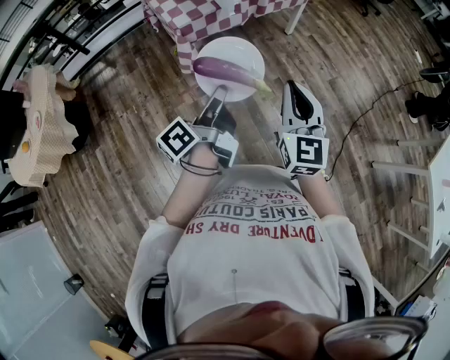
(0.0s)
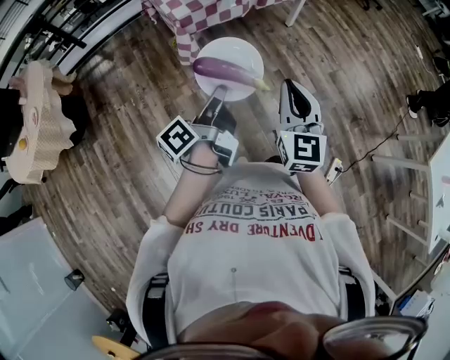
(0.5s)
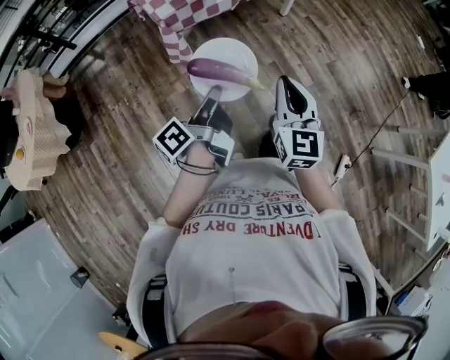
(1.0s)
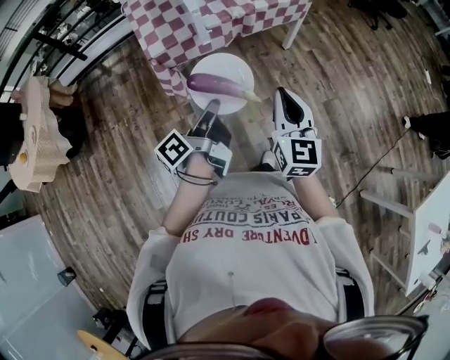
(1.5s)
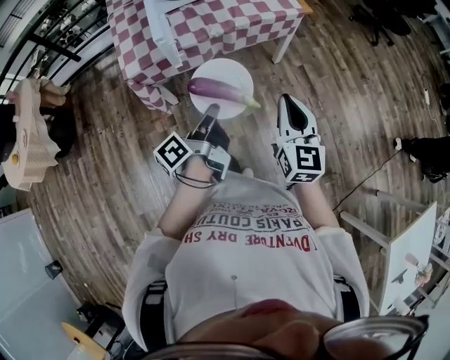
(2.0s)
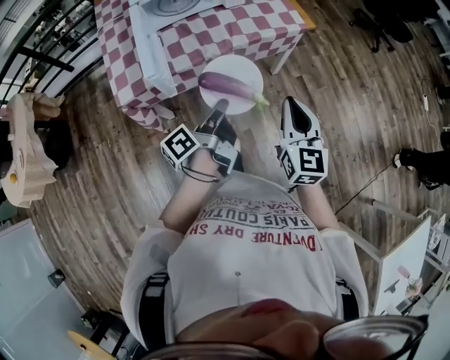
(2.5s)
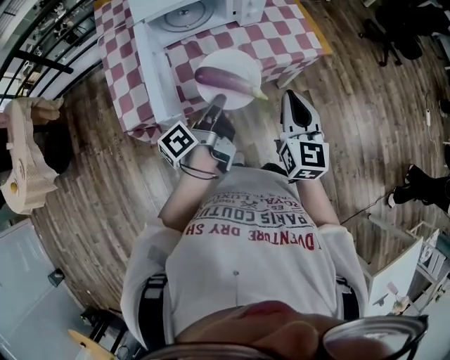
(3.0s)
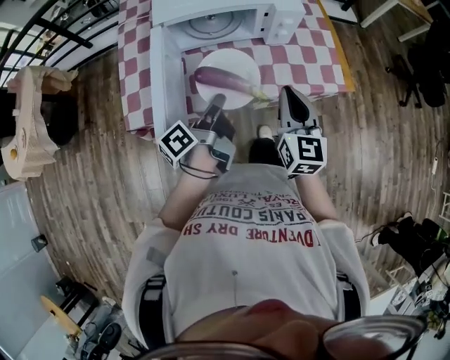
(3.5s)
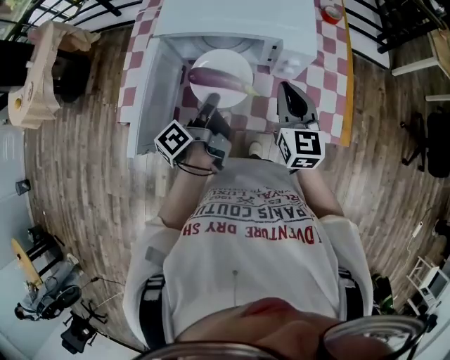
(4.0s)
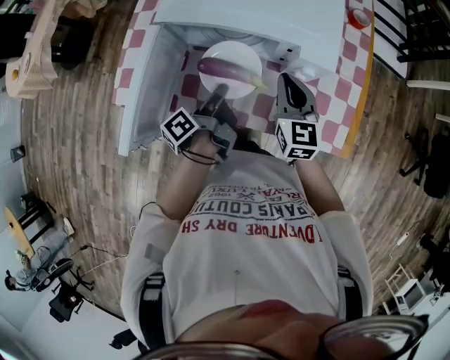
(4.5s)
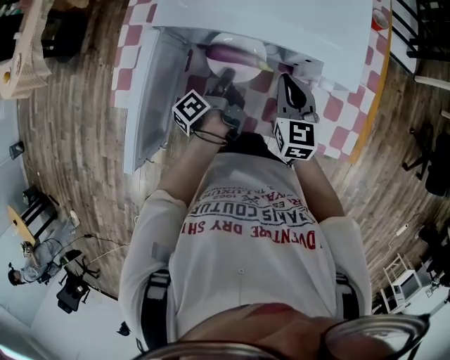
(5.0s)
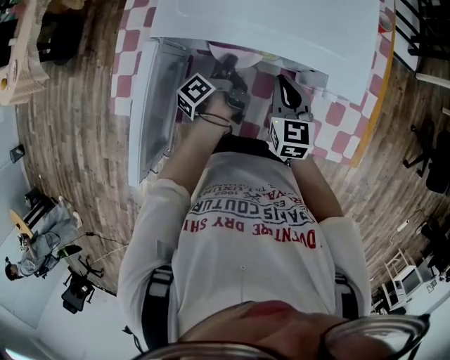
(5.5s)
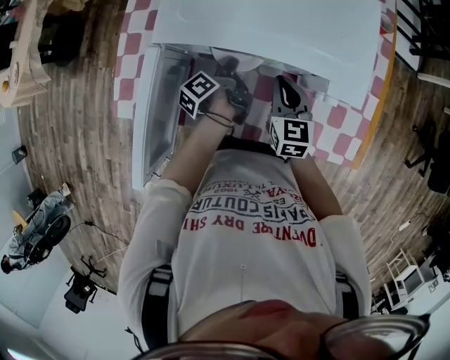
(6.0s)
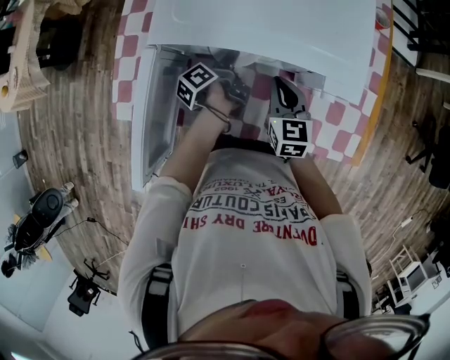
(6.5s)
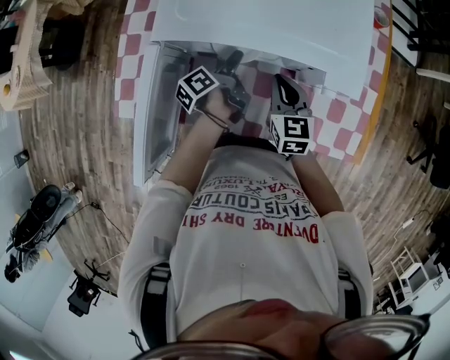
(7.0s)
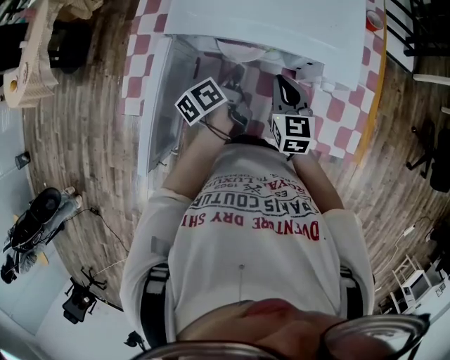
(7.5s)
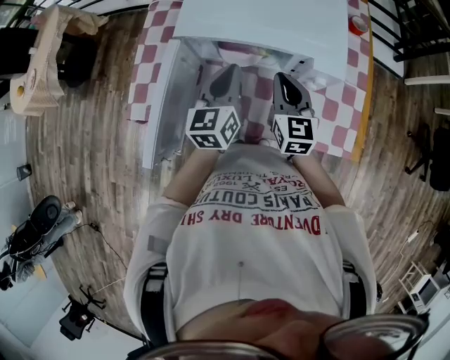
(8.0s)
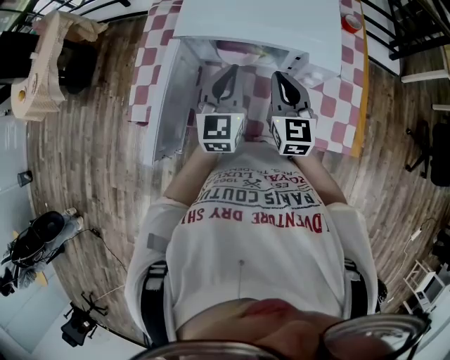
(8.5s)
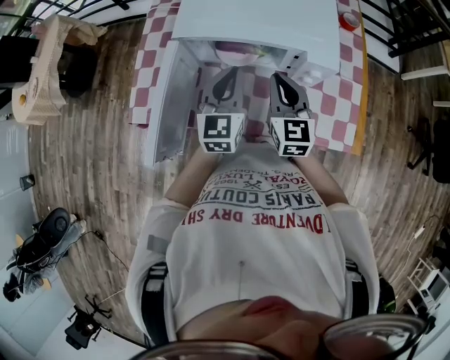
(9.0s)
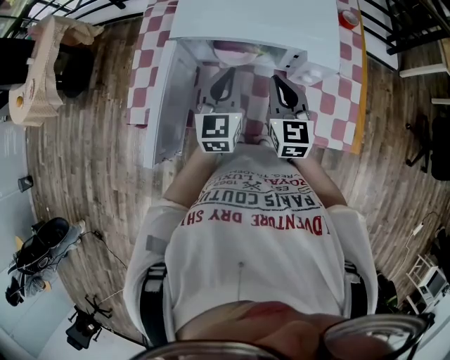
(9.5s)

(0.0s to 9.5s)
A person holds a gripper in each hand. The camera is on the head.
0.0s - 2.0s: The right gripper shifts by about 40 cm.
2.0s - 4.0s: The right gripper changes place by some 60 cm, and swivels about 30 degrees.
4.0s - 5.5s: The right gripper is displaced downward by roughly 15 cm.
7.5s - 9.5s: The right gripper is displaced upward by about 10 cm.

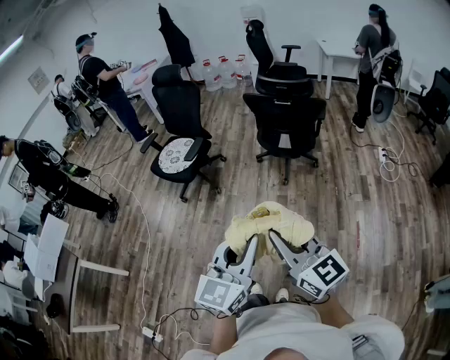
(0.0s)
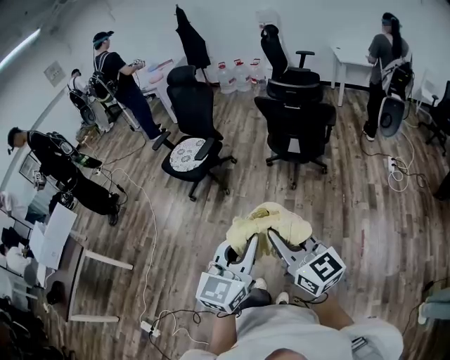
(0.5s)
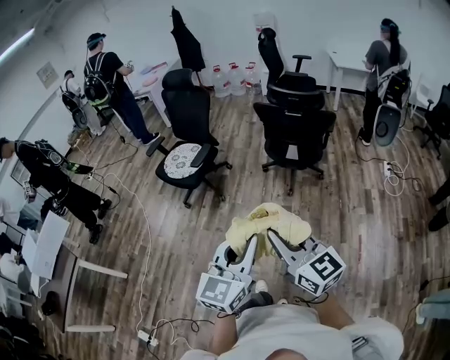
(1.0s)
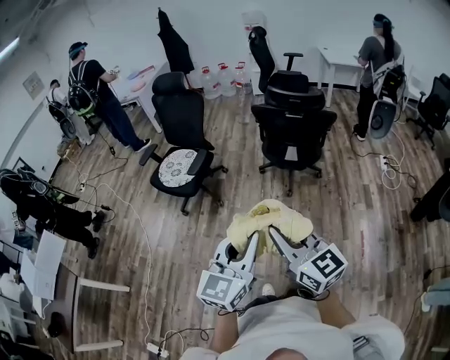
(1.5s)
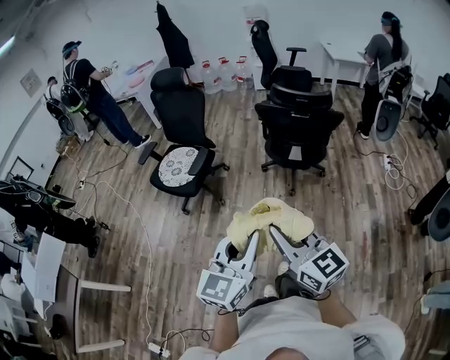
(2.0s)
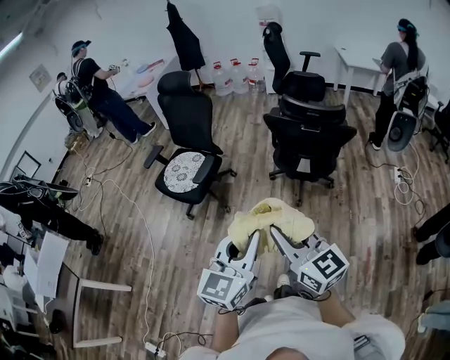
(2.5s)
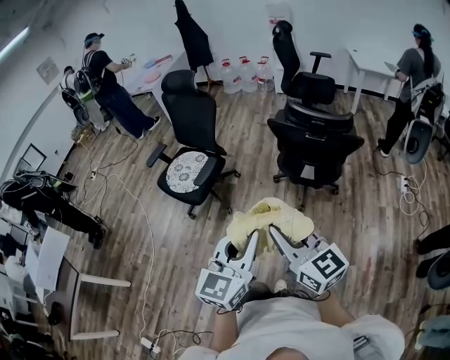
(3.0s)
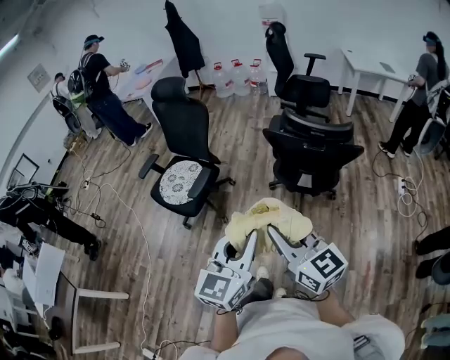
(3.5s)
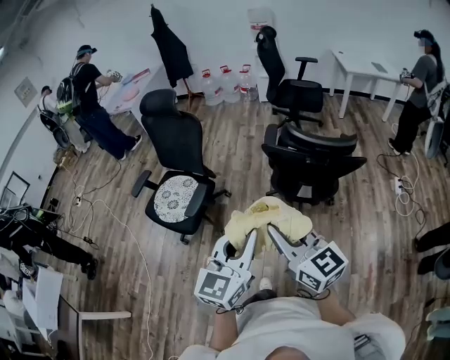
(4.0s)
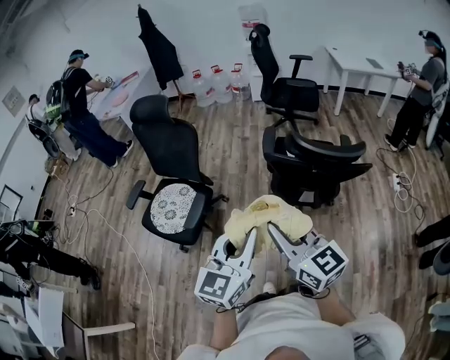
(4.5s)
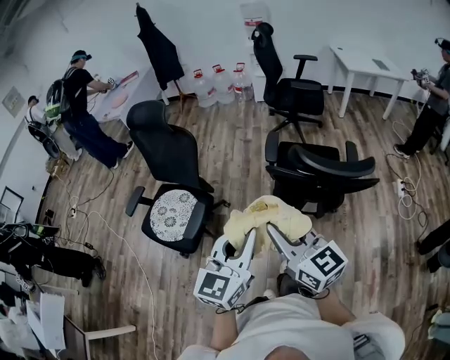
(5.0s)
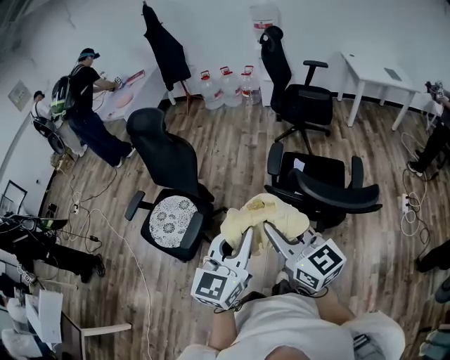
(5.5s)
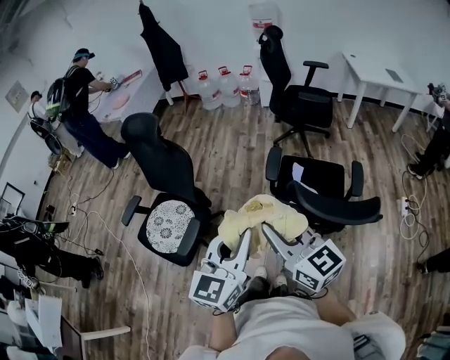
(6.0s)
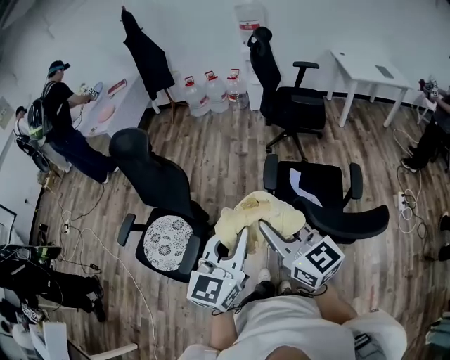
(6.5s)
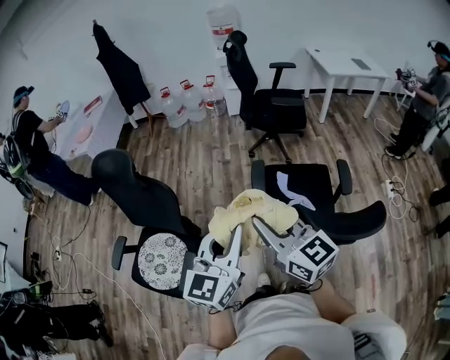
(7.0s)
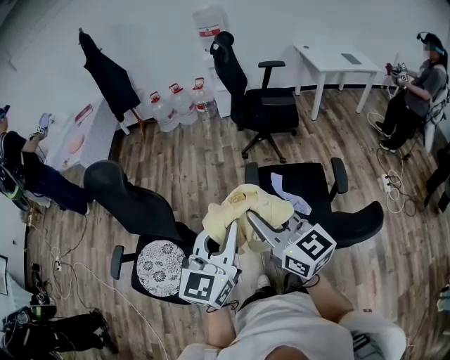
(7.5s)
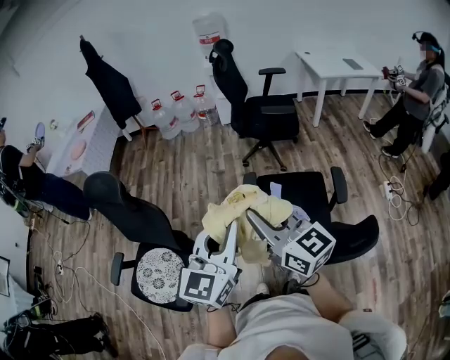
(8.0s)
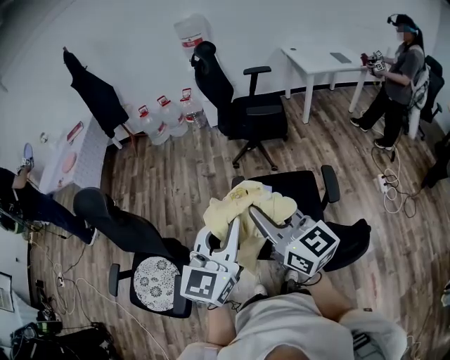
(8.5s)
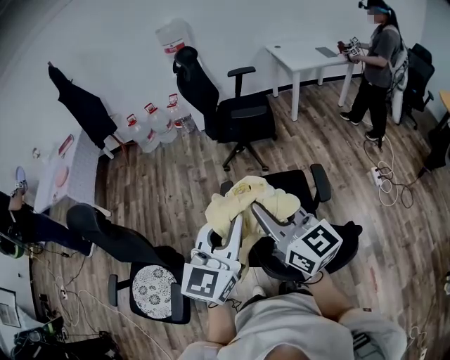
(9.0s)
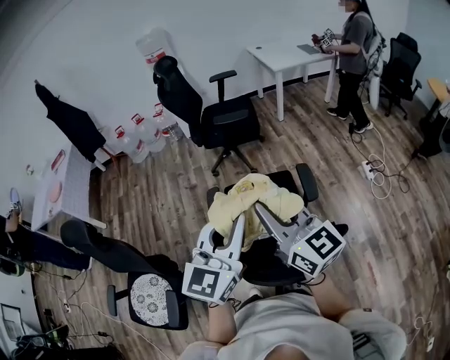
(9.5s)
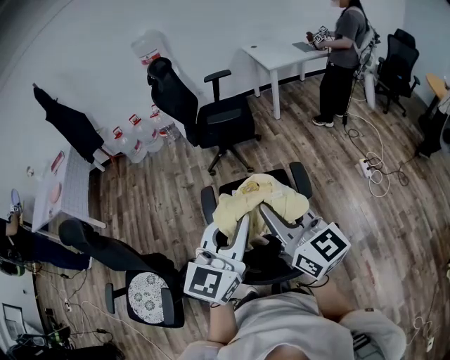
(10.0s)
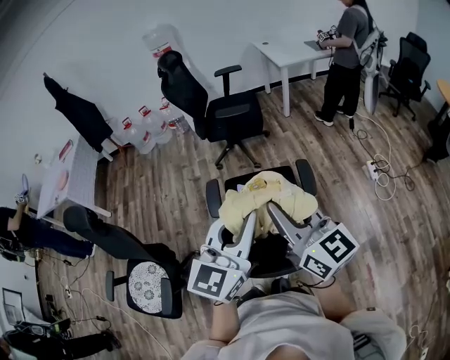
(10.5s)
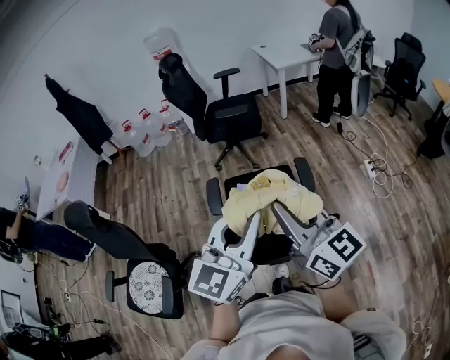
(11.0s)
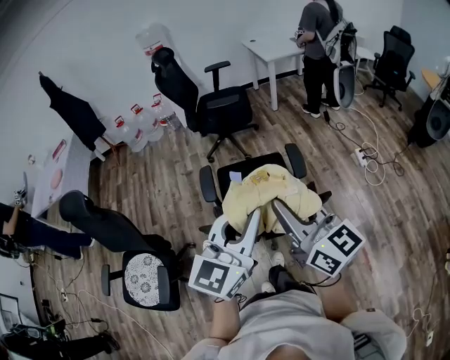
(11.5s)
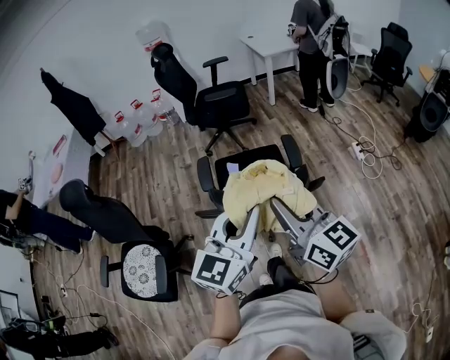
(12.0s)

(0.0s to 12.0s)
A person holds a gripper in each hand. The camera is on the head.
0.0s - 2.0s: The two grippers go roughly 15 cm forward.
2.0s - 4.0s: Both grippers travel together forward, some 30 cm.
4.0s - 6.0s: The grippers both shift forward by roughly 25 cm.
6.0s - 8.0s: The grippers both shift forward by about 20 cm.
8.0s - 10.0s: Both grippers move to the right, roughly 25 cm.
10.0s - 12.0s: Both grippers move backward, approximately 15 cm.

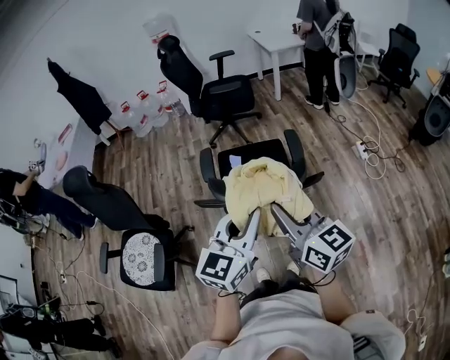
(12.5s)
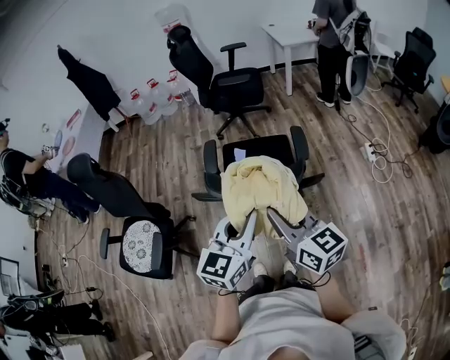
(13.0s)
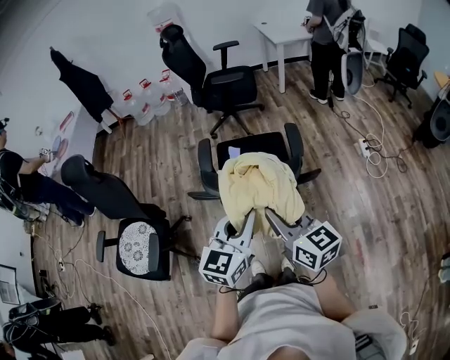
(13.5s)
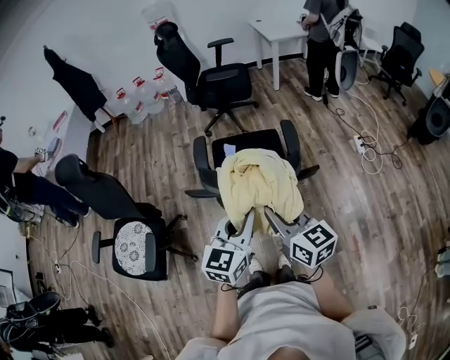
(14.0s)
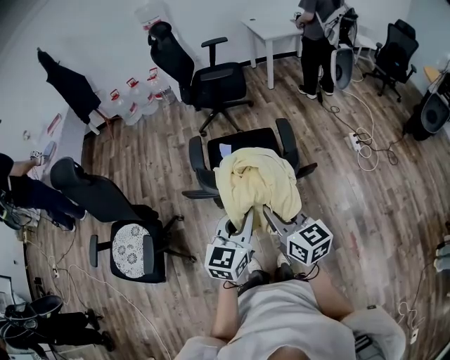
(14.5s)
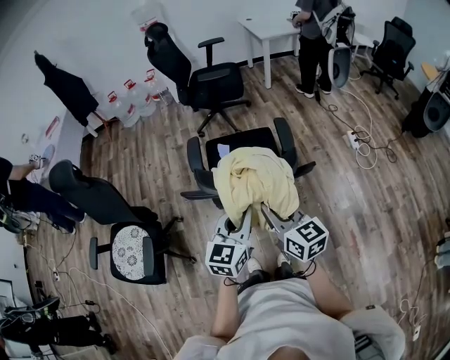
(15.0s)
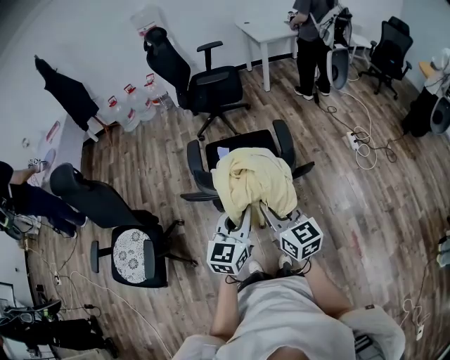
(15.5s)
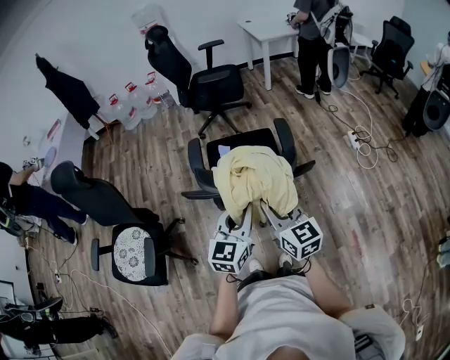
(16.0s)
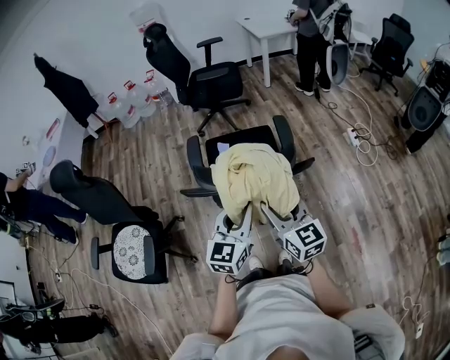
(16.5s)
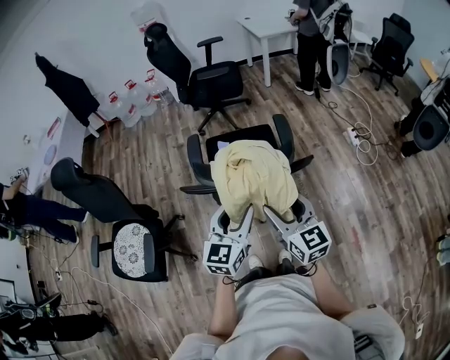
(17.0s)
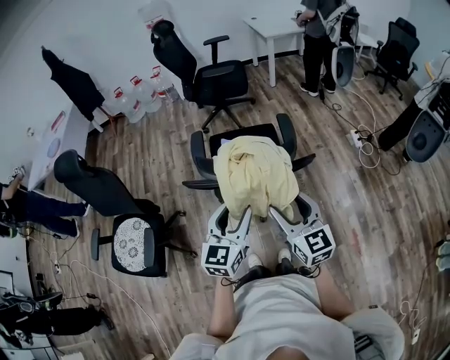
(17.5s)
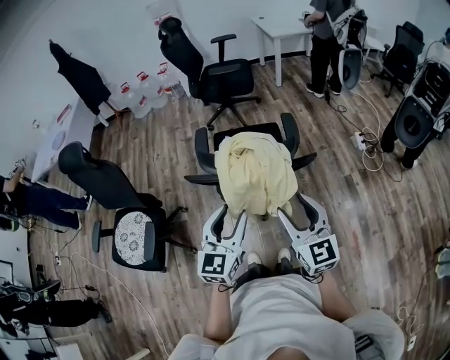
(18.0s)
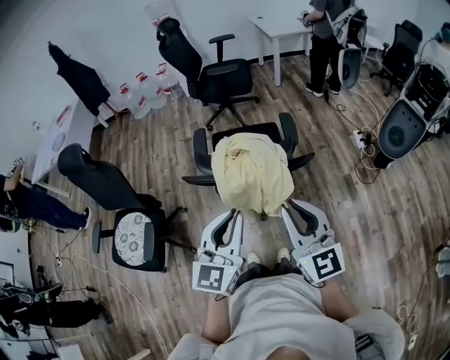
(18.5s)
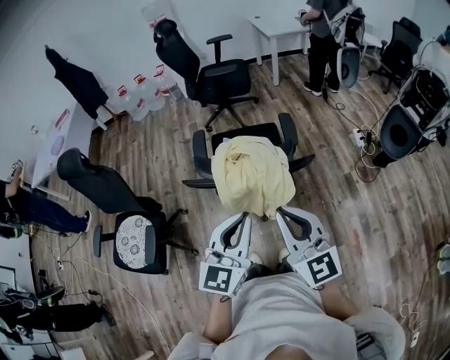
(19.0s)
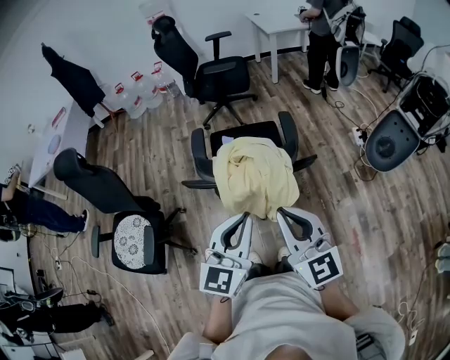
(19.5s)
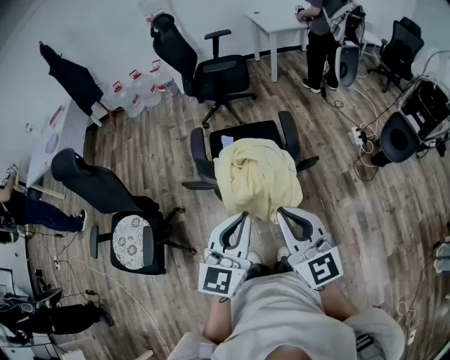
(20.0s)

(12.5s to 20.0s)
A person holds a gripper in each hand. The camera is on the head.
12.5s - 14.5s: The two grippers go approximately 10 cm downward.
14.5s - 16.5s: The right gripper opens.
16.5s - 18.0s: Both grippers move backward, approximately 5 cm. The left gripper opens.
18.0s - 20.0s: Both grippers move upward, roughly 5 cm. The right gripper closes, while the left gripper closes.
